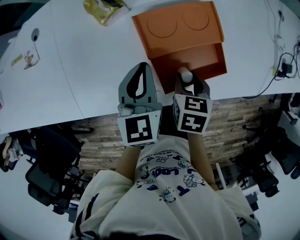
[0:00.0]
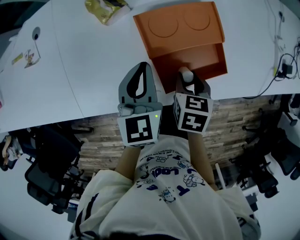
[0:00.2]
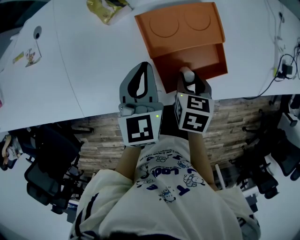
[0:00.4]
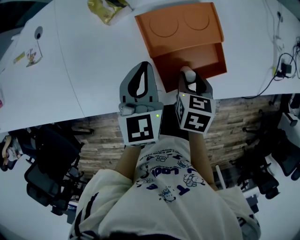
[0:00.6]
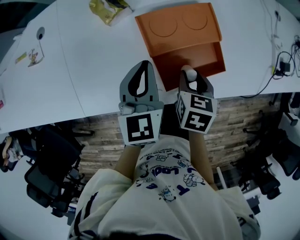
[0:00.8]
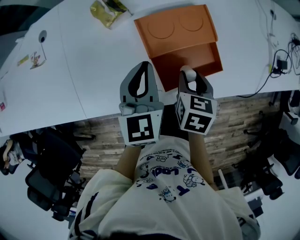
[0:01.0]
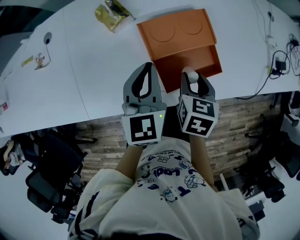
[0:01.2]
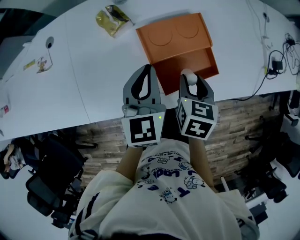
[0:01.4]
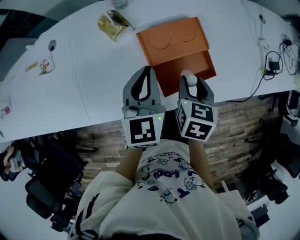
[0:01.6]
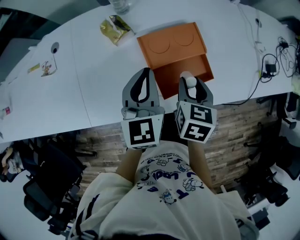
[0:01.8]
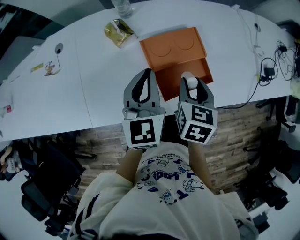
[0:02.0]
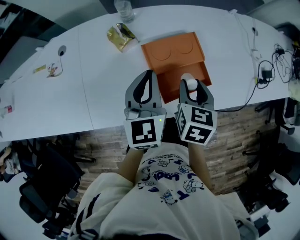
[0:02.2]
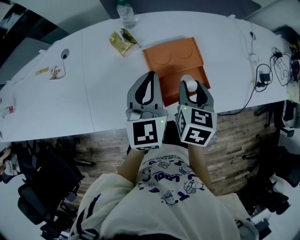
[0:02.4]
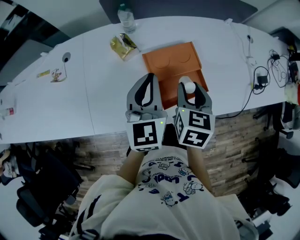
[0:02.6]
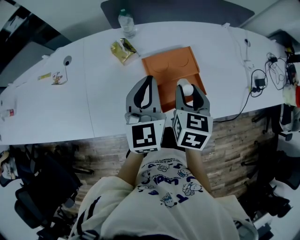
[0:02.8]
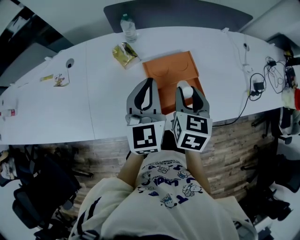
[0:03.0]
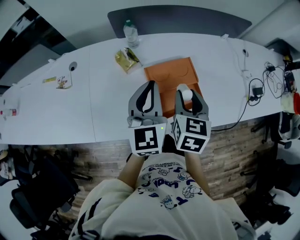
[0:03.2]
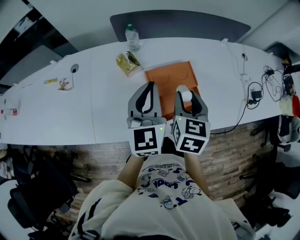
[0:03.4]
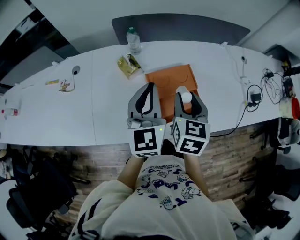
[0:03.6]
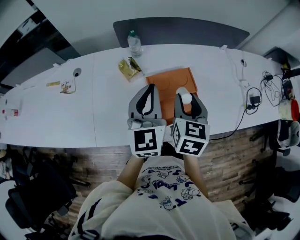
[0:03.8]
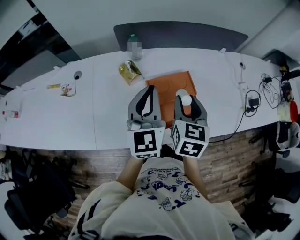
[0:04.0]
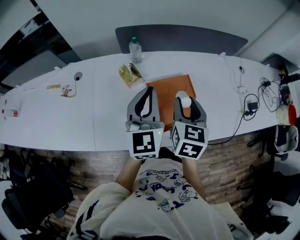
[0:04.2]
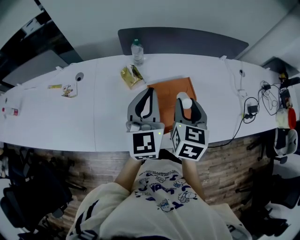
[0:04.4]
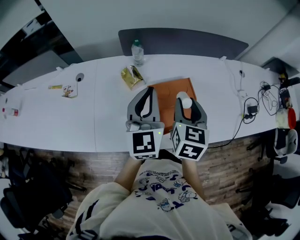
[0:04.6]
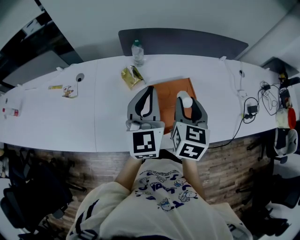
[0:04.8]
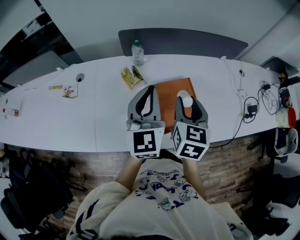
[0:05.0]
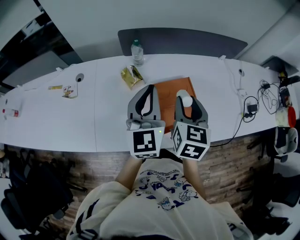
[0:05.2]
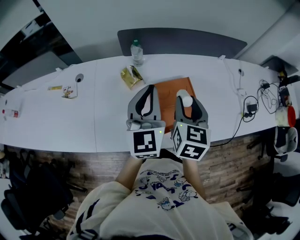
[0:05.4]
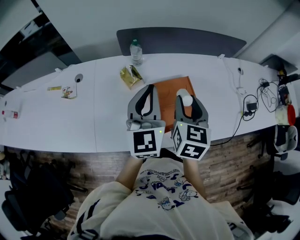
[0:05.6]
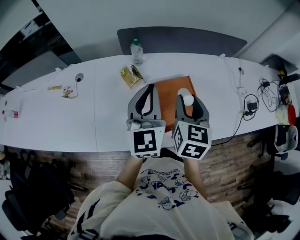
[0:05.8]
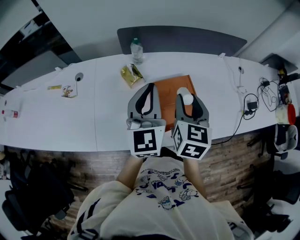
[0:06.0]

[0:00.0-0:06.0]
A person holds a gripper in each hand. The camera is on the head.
0:00.0 to 0:01.6: The two grippers go roughly 10 cm upward.
0:01.6 to 0:03.0: Both grippers travel together upward, about 10 cm.
0:03.0 to 0:04.4: The grippers both shift upward by some 5 cm.
0:04.4 to 0:06.0: The grippers make only small movements.

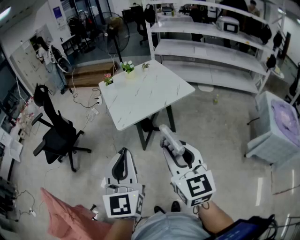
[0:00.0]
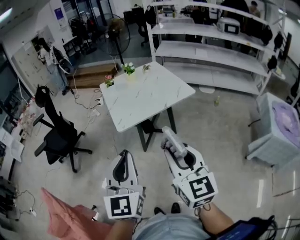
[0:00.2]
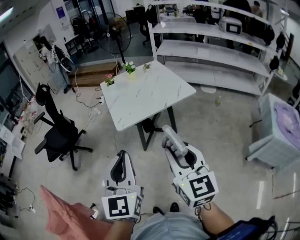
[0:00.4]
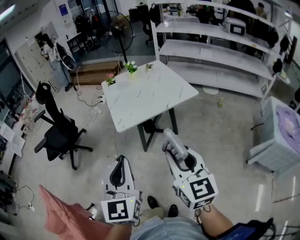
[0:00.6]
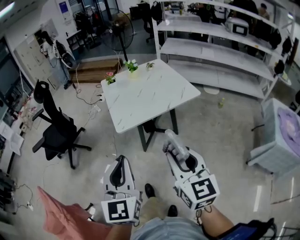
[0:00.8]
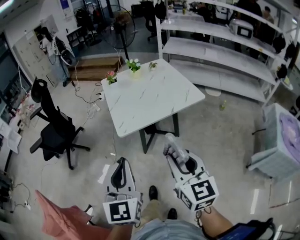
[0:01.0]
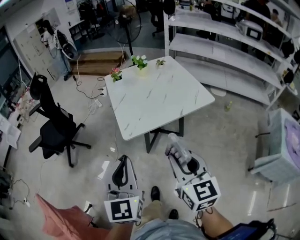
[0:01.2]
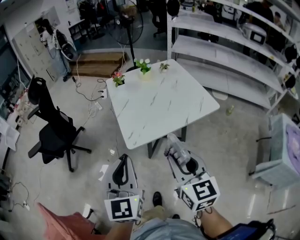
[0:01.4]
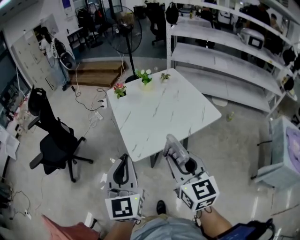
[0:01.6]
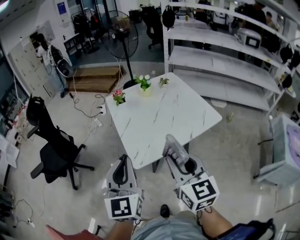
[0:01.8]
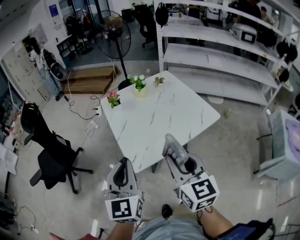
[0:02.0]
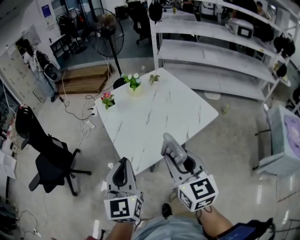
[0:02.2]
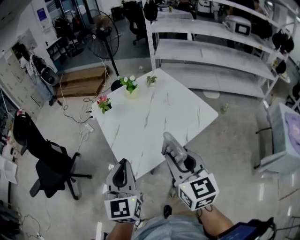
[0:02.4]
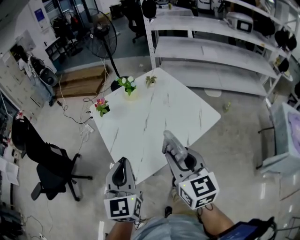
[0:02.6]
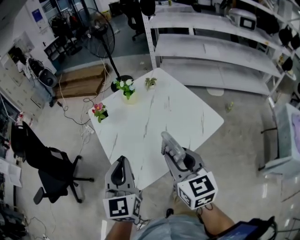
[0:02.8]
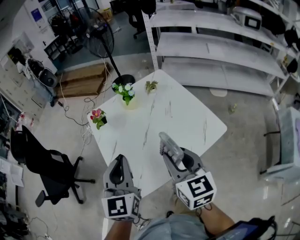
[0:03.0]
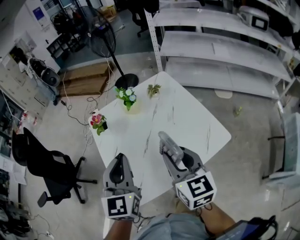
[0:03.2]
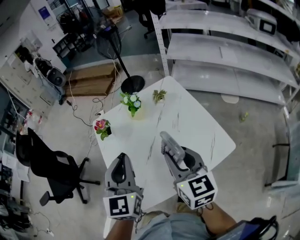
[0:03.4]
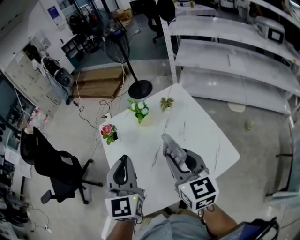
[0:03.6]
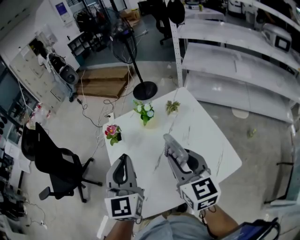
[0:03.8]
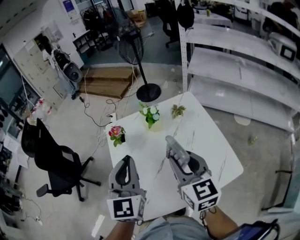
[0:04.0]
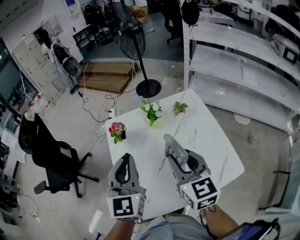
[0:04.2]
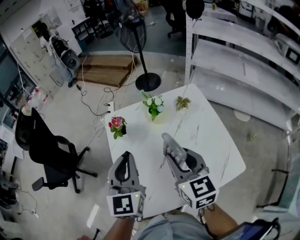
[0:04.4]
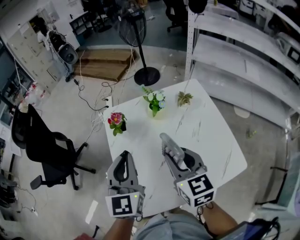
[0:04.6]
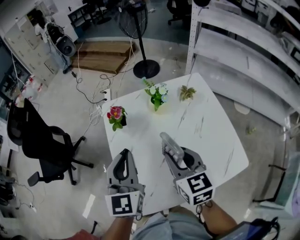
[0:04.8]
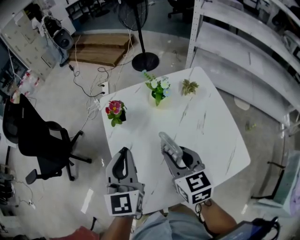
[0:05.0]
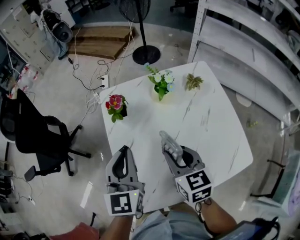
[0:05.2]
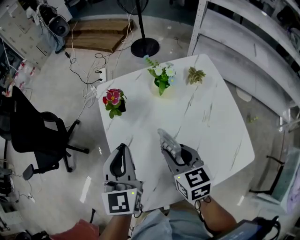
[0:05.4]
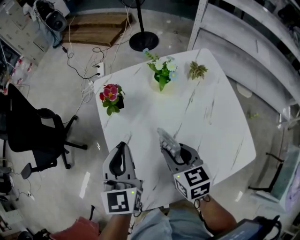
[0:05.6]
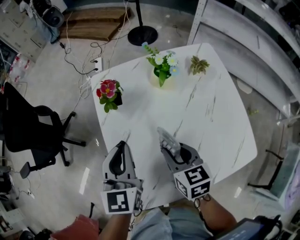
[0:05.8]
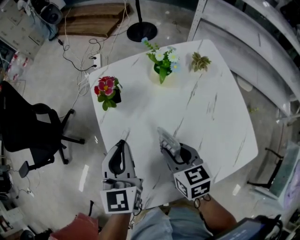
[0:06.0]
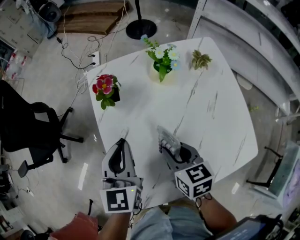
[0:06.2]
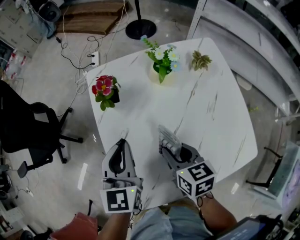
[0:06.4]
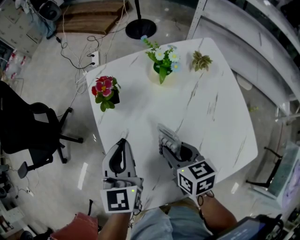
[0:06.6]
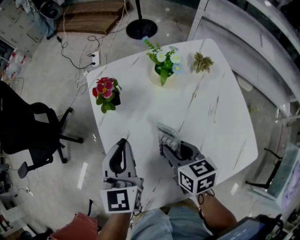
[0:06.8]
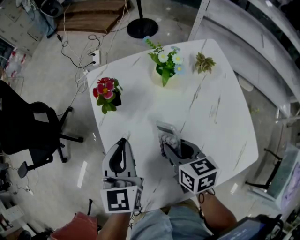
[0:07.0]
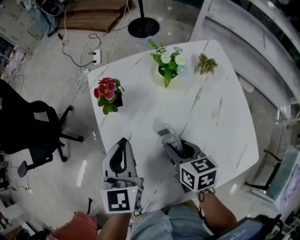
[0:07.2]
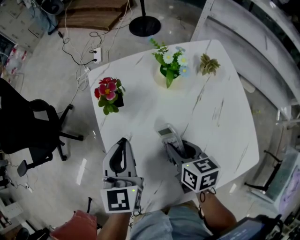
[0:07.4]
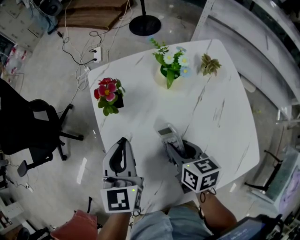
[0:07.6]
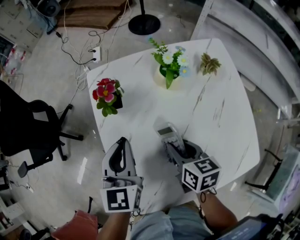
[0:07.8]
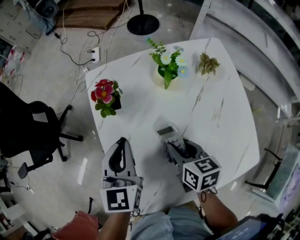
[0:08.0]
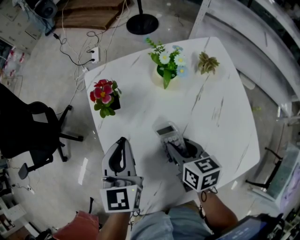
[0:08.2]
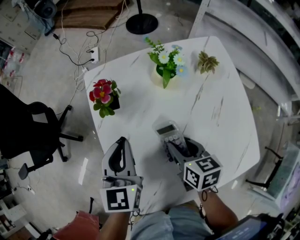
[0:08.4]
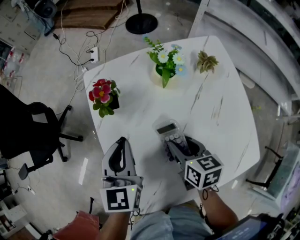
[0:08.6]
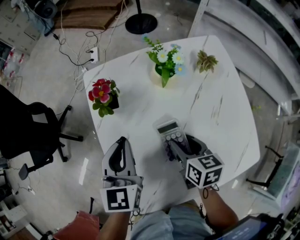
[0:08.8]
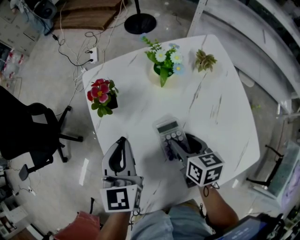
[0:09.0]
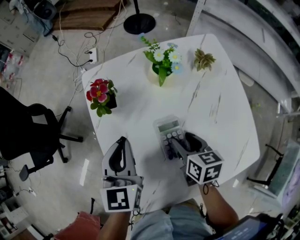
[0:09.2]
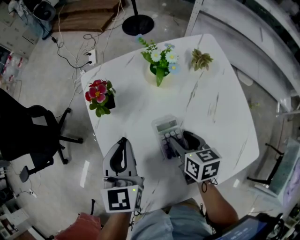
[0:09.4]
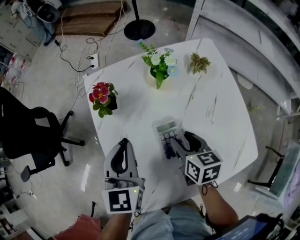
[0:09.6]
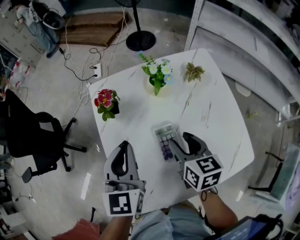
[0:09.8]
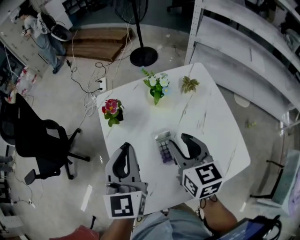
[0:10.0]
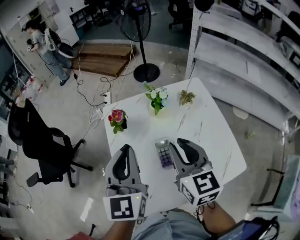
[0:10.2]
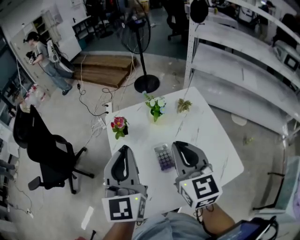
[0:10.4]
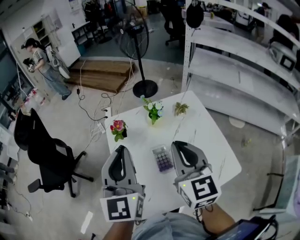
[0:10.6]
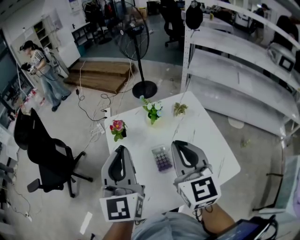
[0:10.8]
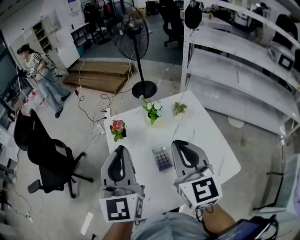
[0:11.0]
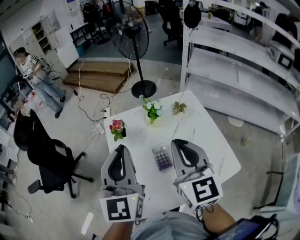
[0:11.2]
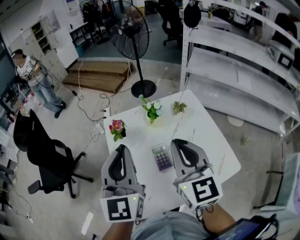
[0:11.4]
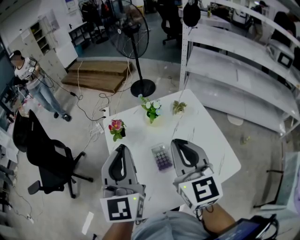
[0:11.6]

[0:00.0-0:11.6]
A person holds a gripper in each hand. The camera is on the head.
0:00.0 to 0:01.4: The two grippers go some 20 cm forward.
0:01.4 to 0:02.8: The grippers both shift forward by roughly 25 cm.
0:02.8 to 0:04.4: The grippers both shift forward by roughly 20 cm.
0:04.4 to 0:05.8: The left gripper heads downward and to the left, covering about 15 cm. Meanwhile the right gripper goes roughly 20 cm downward, and rotates about 20 degrees.
0:05.8 to 0:07.2: The grippers stay close to where they were, moving slightly.
0:07.2 to 0:08.8: There are only small adjustments of the grippers.
0:08.8 to 0:10.2: The grippers both shift upward by approximately 20 cm. The right gripper changes its angle by approximately 40 degrees, and closes up.
0:10.2 to 0:11.6: Both grippers move upward, some 10 cm. The right gripper closes its fingers.

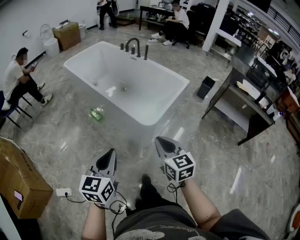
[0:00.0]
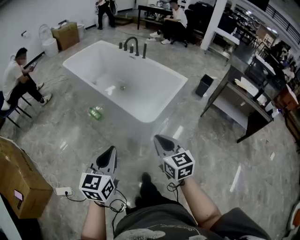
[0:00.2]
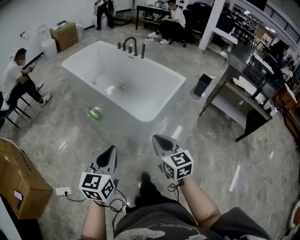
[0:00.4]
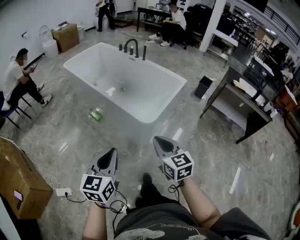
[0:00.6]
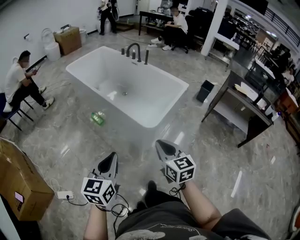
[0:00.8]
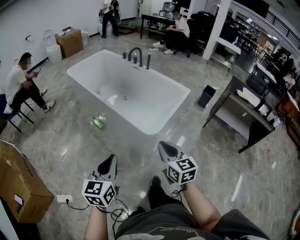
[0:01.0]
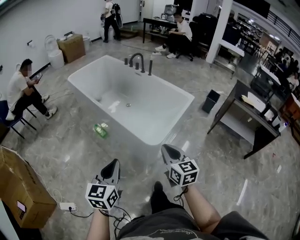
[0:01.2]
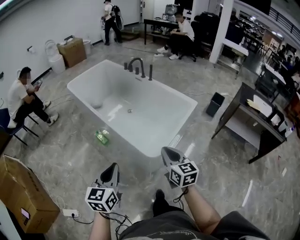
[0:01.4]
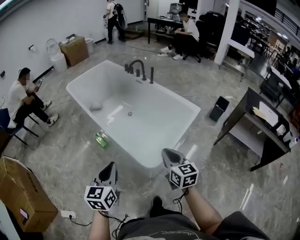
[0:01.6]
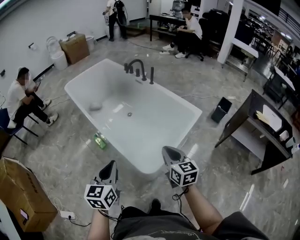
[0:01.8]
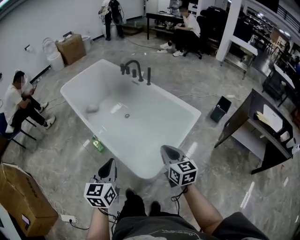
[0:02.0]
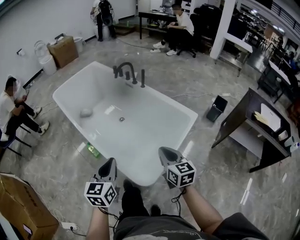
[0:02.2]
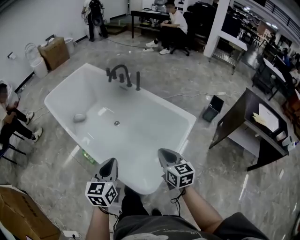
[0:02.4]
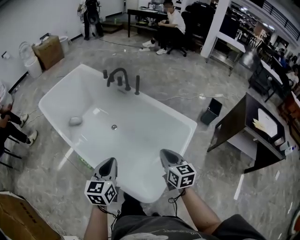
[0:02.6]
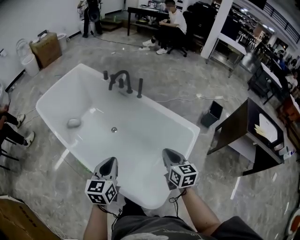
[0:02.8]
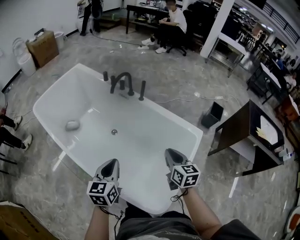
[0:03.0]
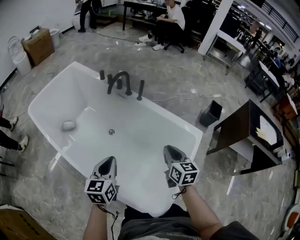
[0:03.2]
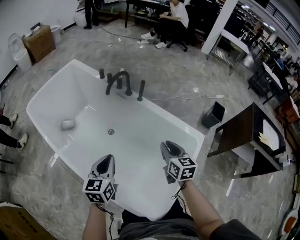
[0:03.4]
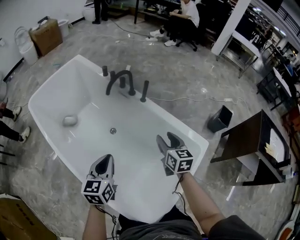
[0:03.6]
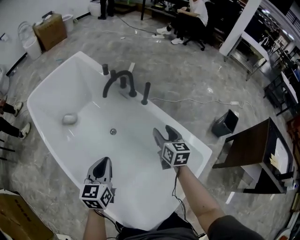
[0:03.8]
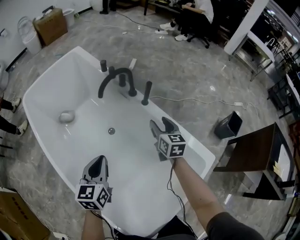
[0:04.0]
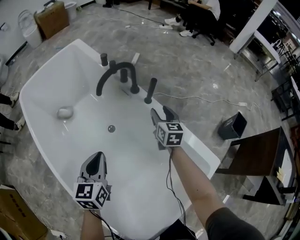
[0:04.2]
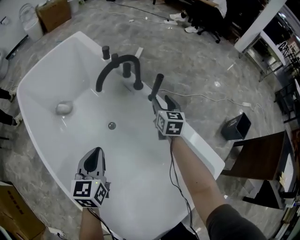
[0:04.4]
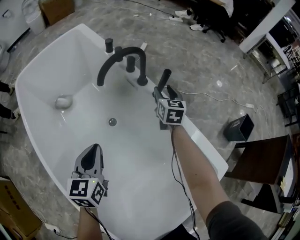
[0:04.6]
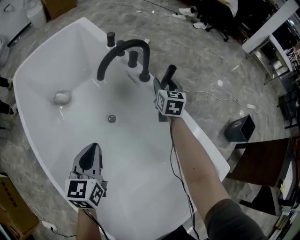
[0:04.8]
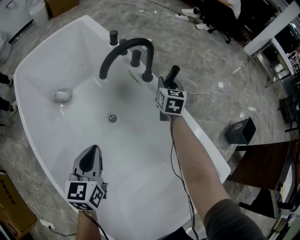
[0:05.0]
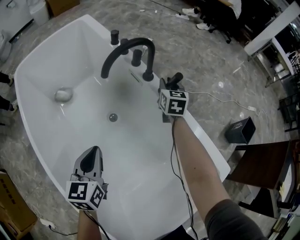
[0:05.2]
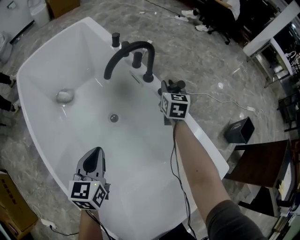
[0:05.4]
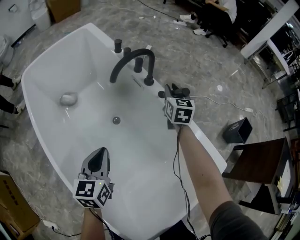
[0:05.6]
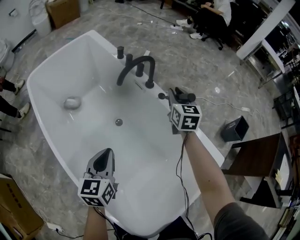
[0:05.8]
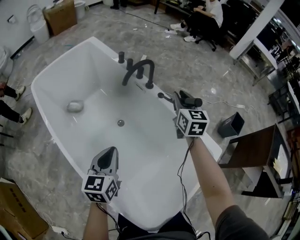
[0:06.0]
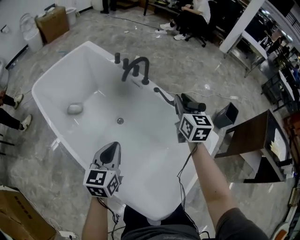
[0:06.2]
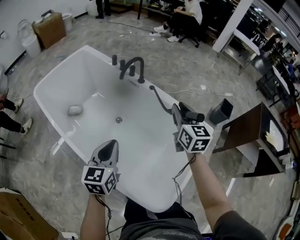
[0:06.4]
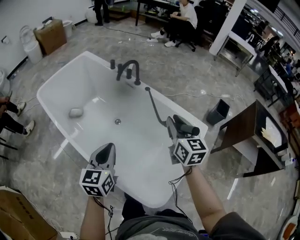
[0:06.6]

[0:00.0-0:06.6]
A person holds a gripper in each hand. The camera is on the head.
0:00.0 to 0:01.6: The two grippers go roughly 25 cm forward.
0:01.6 to 0:03.2: The two grippers travel together, forward, some 40 cm. The right gripper swivels about 20 degrees.
0:03.2 to 0:05.0: The left gripper shifts some 30 cm forward and downward, and rotates roughly 20 degrees. The right gripper travels forward and downward by roughly 60 cm, and opens.
0:05.0 to 0:06.6: The right gripper moves backward and upward, some 60 cm; the left gripper travels backward and upward by roughly 35 cm, and turns by some 20 degrees.
